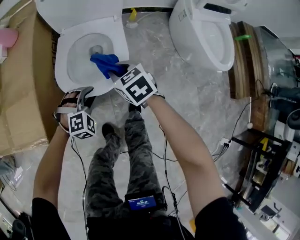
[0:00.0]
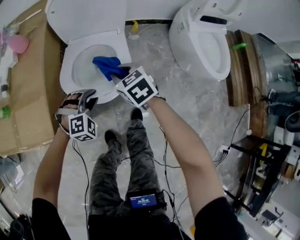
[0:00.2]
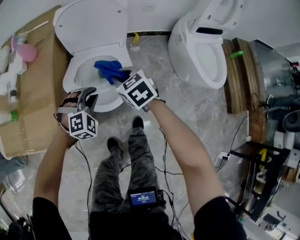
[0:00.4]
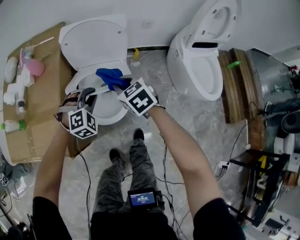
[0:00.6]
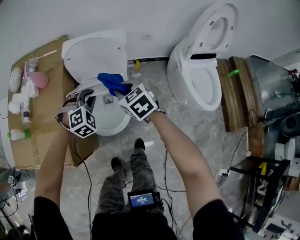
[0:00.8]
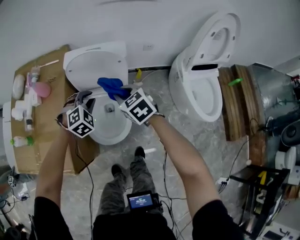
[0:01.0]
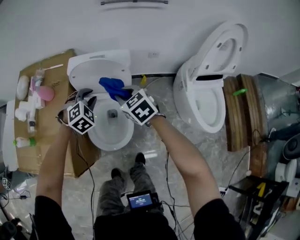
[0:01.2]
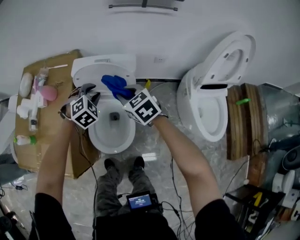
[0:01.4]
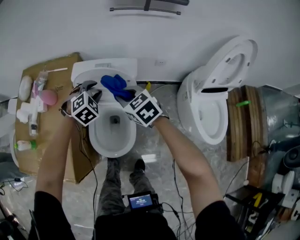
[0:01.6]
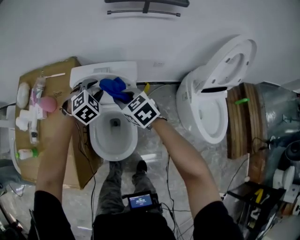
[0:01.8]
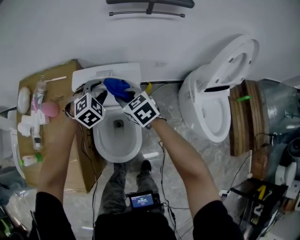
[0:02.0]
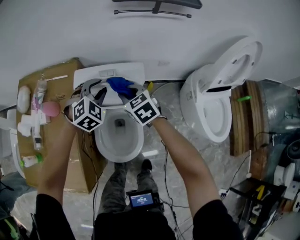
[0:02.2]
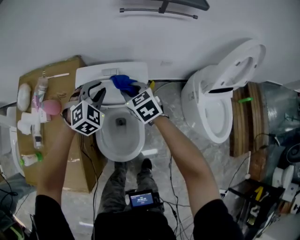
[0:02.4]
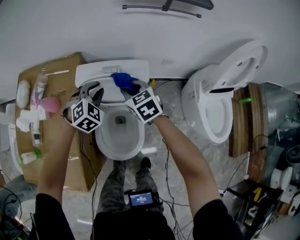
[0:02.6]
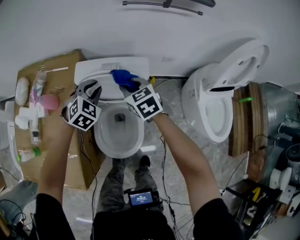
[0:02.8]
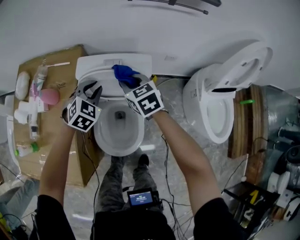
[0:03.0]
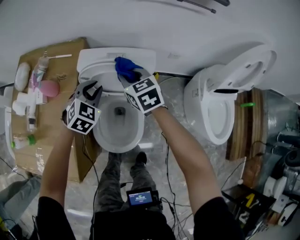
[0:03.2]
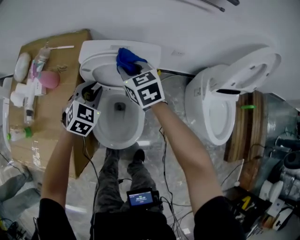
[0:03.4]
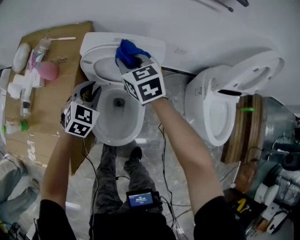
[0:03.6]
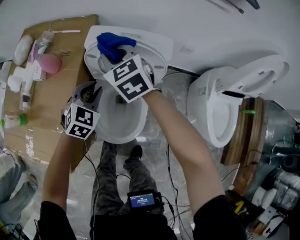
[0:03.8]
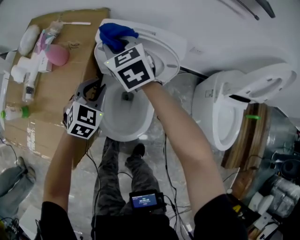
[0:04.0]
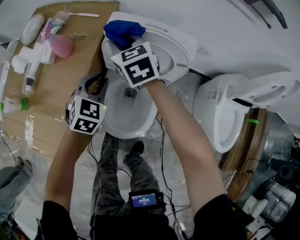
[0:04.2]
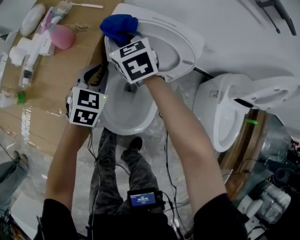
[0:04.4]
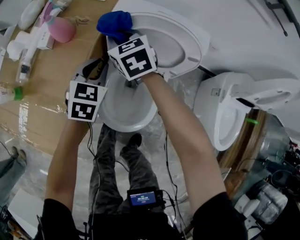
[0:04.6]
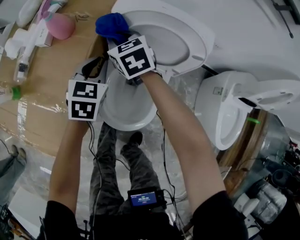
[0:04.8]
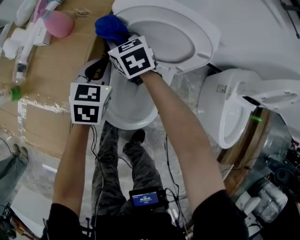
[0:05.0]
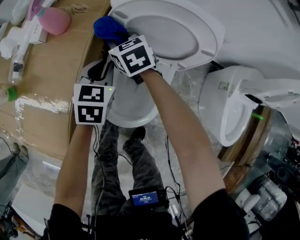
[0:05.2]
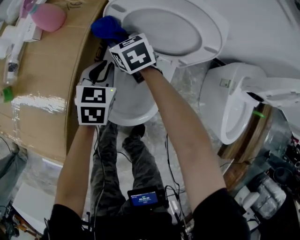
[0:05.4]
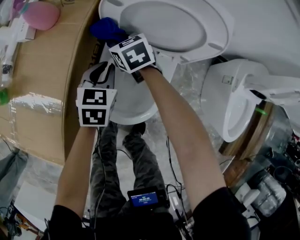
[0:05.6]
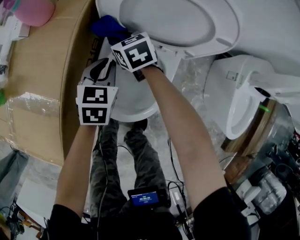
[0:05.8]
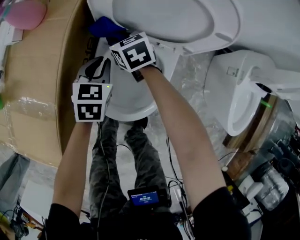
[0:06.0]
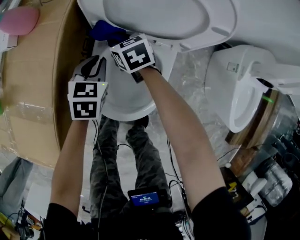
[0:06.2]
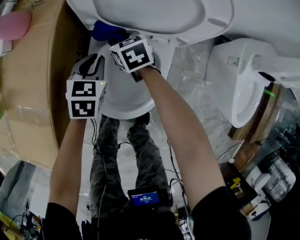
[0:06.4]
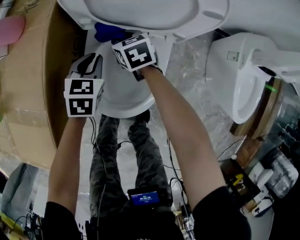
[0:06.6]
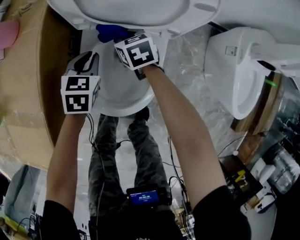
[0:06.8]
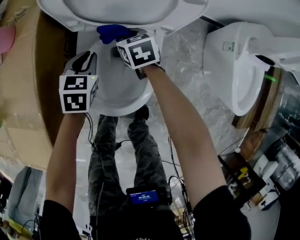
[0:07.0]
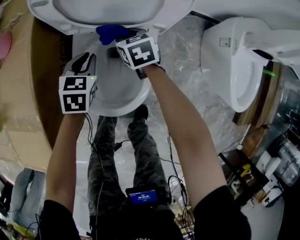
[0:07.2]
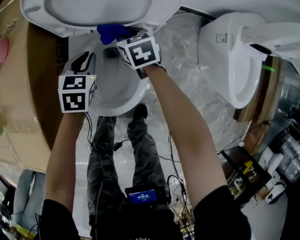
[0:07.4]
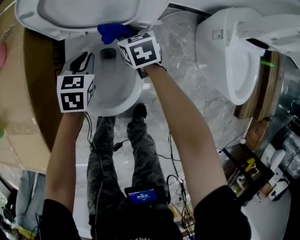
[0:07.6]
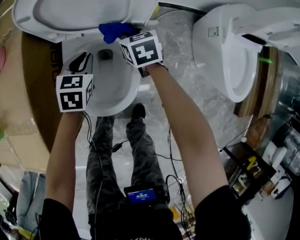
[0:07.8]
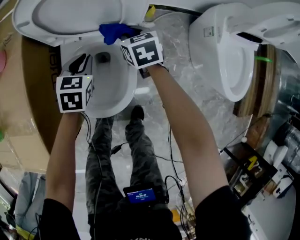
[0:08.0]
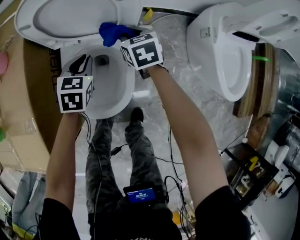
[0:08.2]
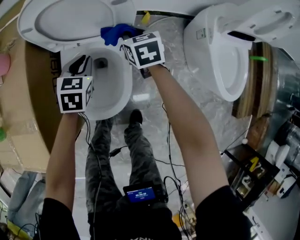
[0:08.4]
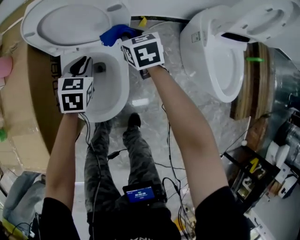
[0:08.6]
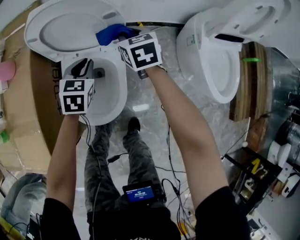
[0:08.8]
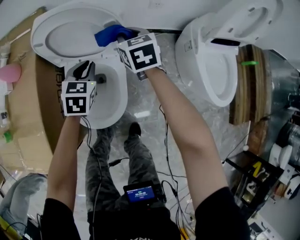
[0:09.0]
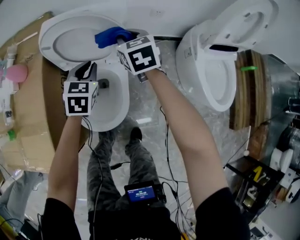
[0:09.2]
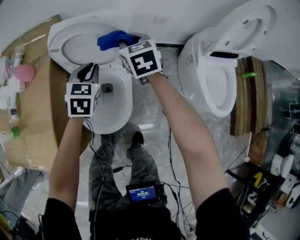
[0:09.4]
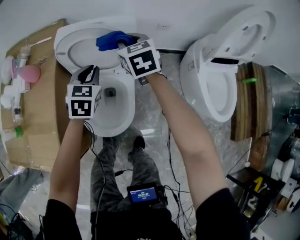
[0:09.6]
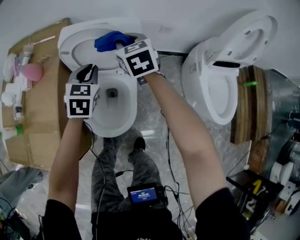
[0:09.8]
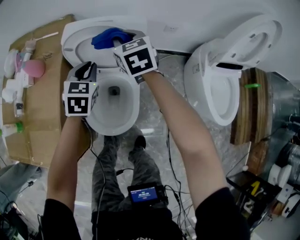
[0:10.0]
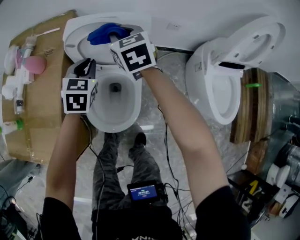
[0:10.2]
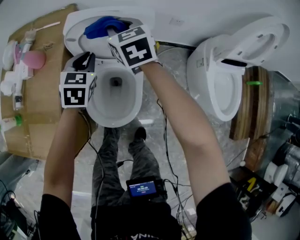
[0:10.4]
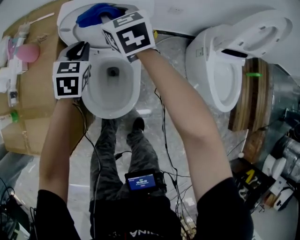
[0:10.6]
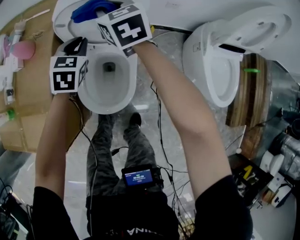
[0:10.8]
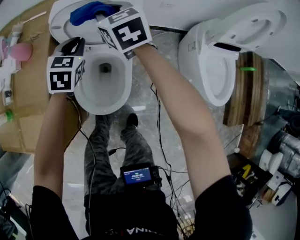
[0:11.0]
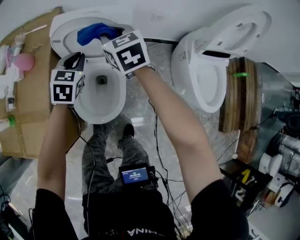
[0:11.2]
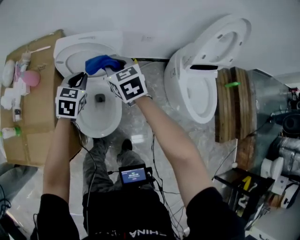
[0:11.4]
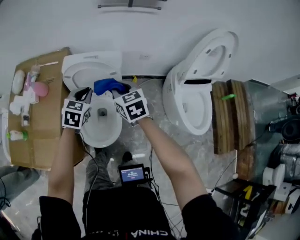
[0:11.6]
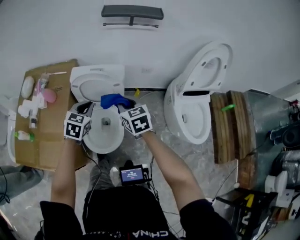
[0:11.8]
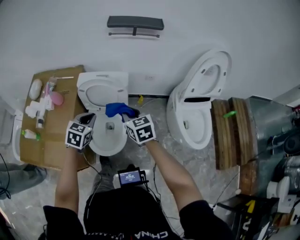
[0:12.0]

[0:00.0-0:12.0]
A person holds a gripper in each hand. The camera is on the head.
0:00.0 to 0:01.6: The right gripper travels upward and forward by approximately 35 cm, while the left gripper heads forward and upward, covering roughly 50 cm, and turns by about 20 degrees.
0:01.6 to 0:03.0: The right gripper moves forward, approximately 10 cm. Meanwhile the left gripper shifts by about 5 cm.
0:03.0 to 0:04.4: The left gripper travels to the left, downward and backward by some 15 cm, and turns by approximately 30 degrees. Meanwhile the right gripper moves to the left, roughly 20 cm.
0:04.4 to 0:06.0: Both grippers travel together downward, roughly 20 cm. The right gripper changes its angle by roughly 20 degrees.
0:06.0 to 0:07.6: The left gripper is displaced to the right by approximately 10 cm. Meanwhile the right gripper heads to the right, covering some 20 cm, and turns by roughly 20 degrees.
0:07.6 to 0:09.0: The grippers both shift upward and to the right by approximately 20 cm.
0:09.0 to 0:10.4: The left gripper goes roughly 15 cm upward and to the left. The right gripper goes about 20 cm to the left and upward.
0:10.4 to 0:12.0: The right gripper shifts about 30 cm backward, upward and to the right. Meanwhile the left gripper travels backward and upward by some 25 cm.

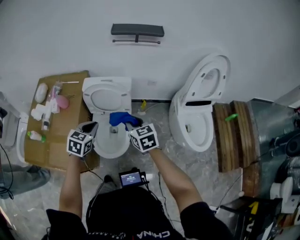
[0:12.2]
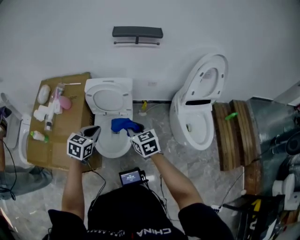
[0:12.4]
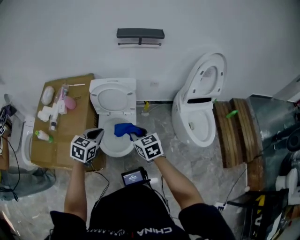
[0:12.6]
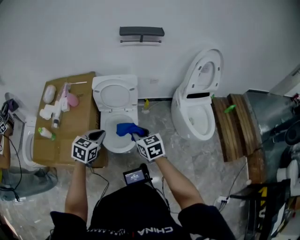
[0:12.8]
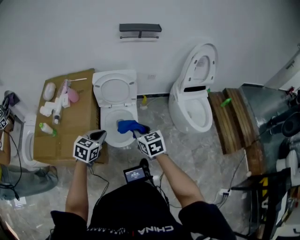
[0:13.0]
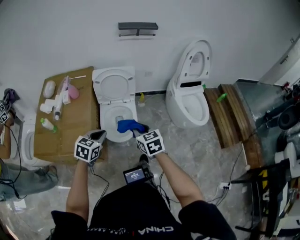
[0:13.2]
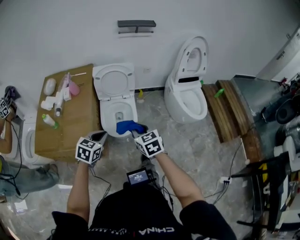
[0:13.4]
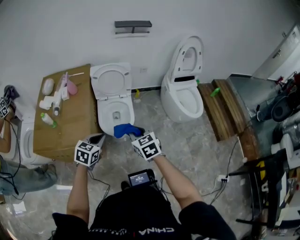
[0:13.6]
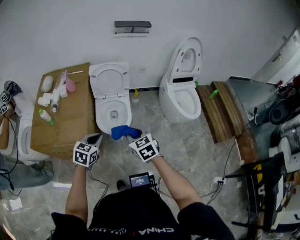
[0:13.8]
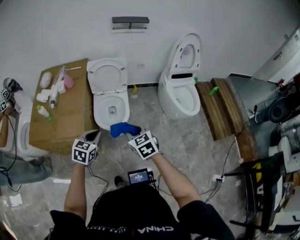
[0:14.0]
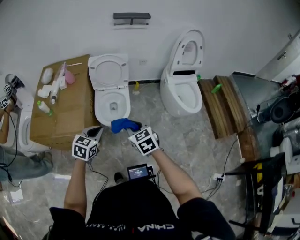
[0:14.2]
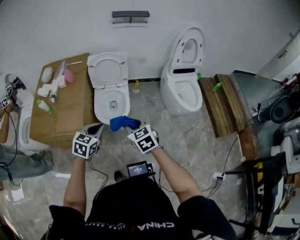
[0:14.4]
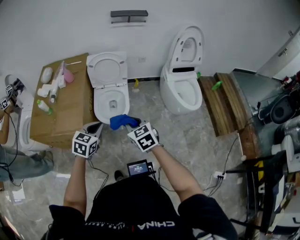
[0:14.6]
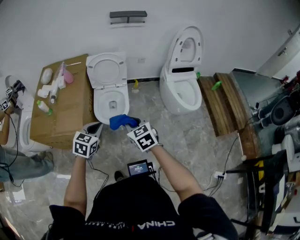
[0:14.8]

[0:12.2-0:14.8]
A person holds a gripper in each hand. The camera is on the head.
0:12.2 to 0:13.4: The grippers both shift backward by roughly 30 cm.
0:13.4 to 0:14.8: The right gripper goes approximately 10 cm backward and to the right. Meanwhile the left gripper is displaced to the right and backward by approximately 10 cm.

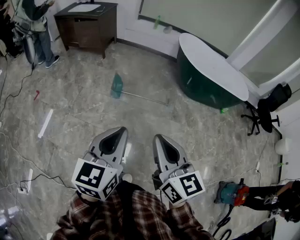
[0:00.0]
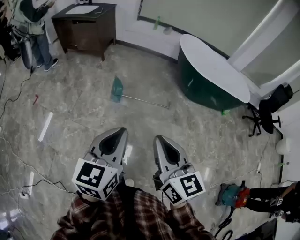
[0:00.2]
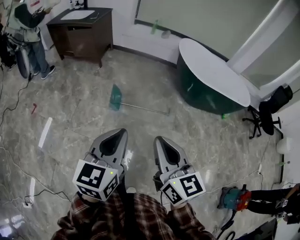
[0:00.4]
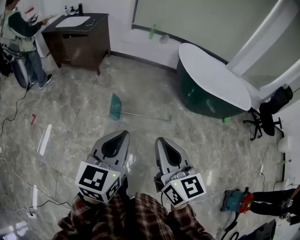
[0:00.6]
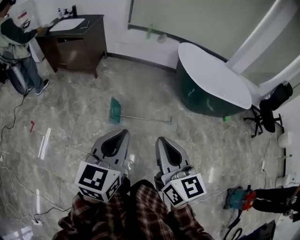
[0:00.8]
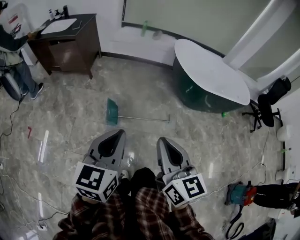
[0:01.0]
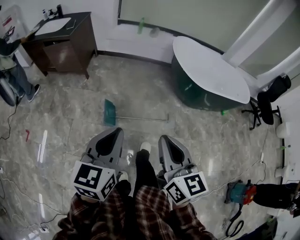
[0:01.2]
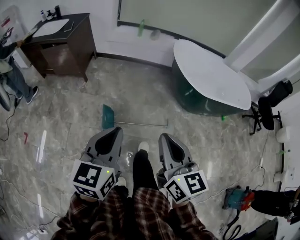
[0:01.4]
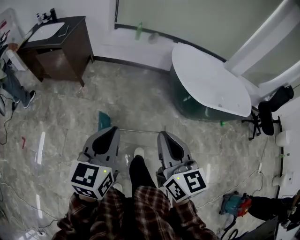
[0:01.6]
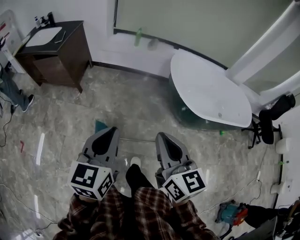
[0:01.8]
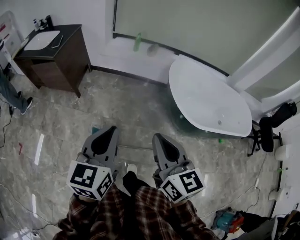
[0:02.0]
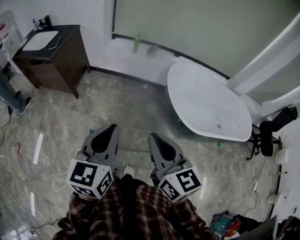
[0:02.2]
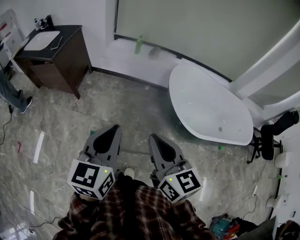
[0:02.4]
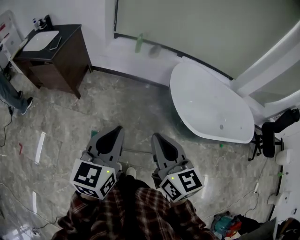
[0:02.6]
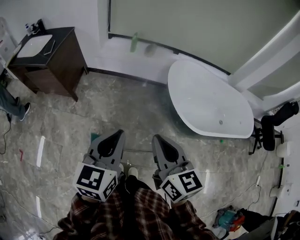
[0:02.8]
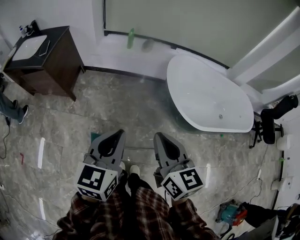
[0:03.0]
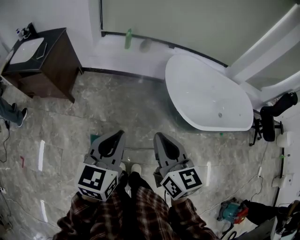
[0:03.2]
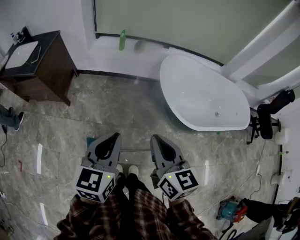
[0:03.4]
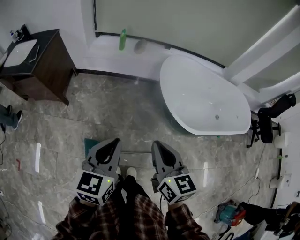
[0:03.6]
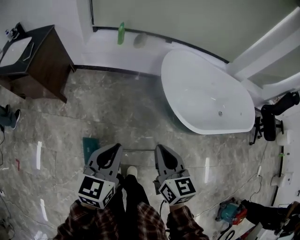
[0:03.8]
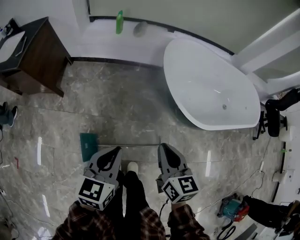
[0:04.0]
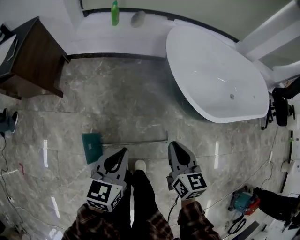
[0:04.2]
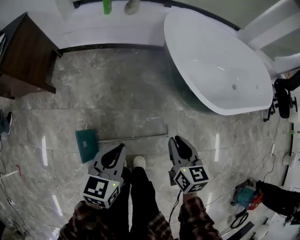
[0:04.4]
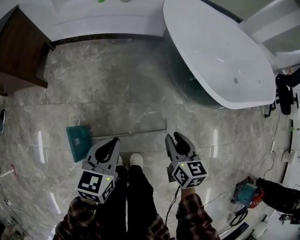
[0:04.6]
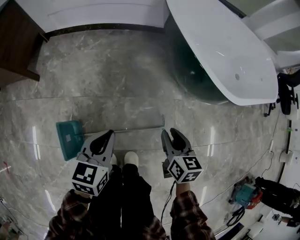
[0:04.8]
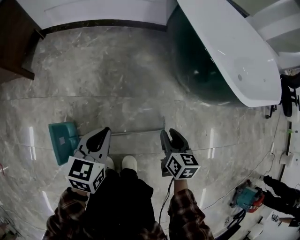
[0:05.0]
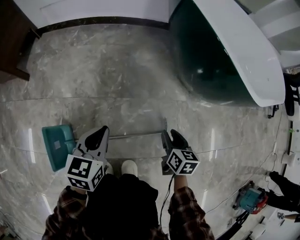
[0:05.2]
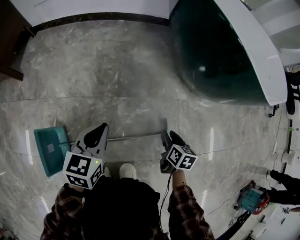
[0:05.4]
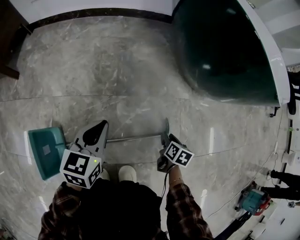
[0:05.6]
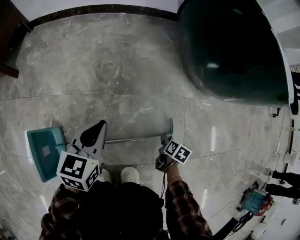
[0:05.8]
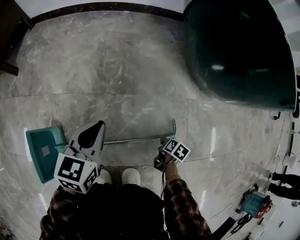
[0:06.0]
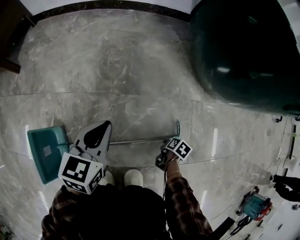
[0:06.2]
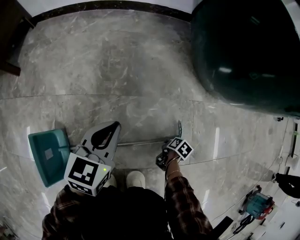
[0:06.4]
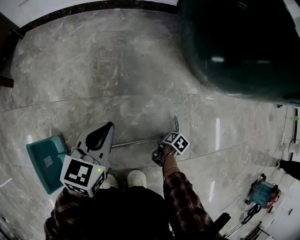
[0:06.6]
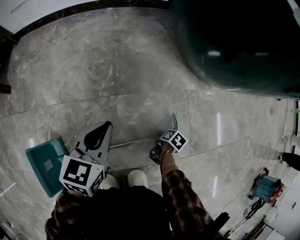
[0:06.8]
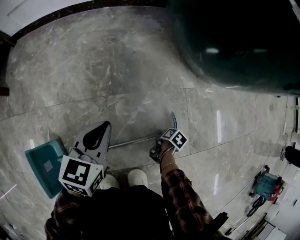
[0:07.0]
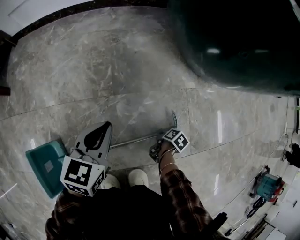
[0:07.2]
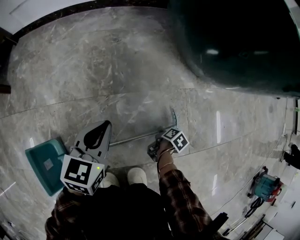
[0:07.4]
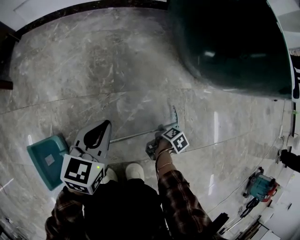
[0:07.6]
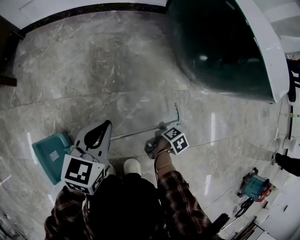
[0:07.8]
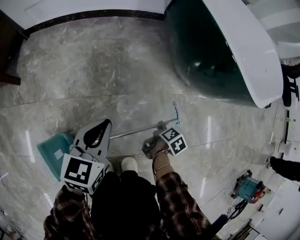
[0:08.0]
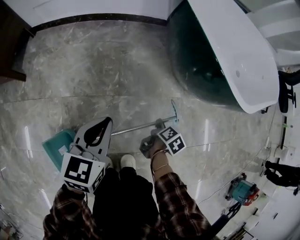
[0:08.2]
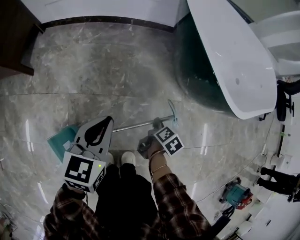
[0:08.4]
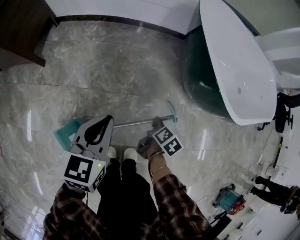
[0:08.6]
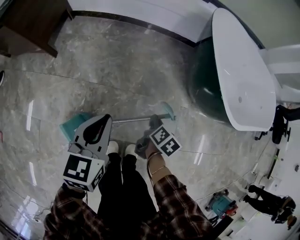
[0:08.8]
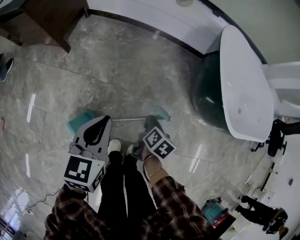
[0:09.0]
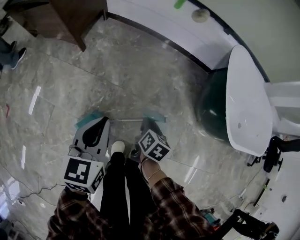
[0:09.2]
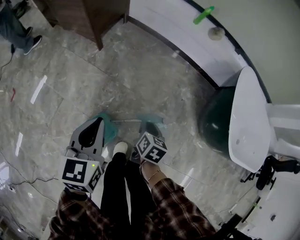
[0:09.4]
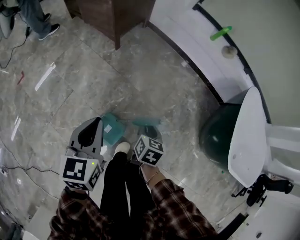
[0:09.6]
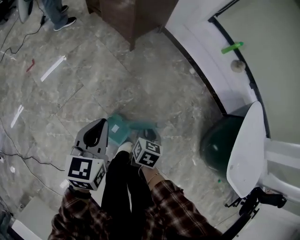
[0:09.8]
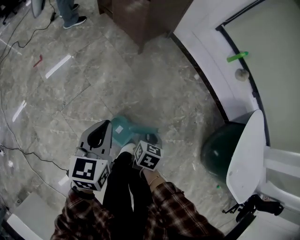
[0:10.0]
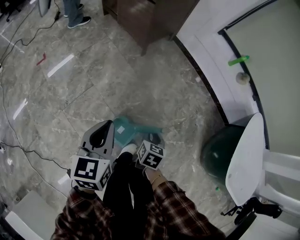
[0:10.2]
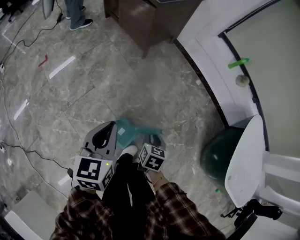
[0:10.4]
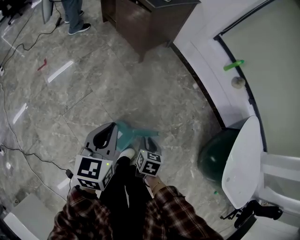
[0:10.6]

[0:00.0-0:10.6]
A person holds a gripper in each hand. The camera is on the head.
0:00.0 to 0:01.6: The two grippers travel together, forward, about 50 cm.
0:01.6 to 0:03.0: Both grippers move forward, approximately 25 cm.
0:03.0 to 0:04.6: Both grippers travel together downward, about 40 cm. The right gripper changes its angle by some 30 degrees, and opens up.
0:04.6 to 0:06.0: The left gripper is displaced downward by some 30 cm. Meanwhile the right gripper is displaced downward by roughly 50 cm, and points its fingers approximately 30 degrees further downward.
0:06.0 to 0:07.6: The right gripper moves some 5 cm downward and comes back, and changes its angle by some 30 degrees.
0:07.6 to 0:09.0: The grippers both shift upward by roughly 40 cm. The right gripper turns by roughly 40 degrees, while the left gripper turns by roughly 30 degrees.
0:09.0 to 0:10.6: The left gripper changes place by some 35 cm, and changes its angle by roughly 40 degrees. The right gripper moves roughly 35 cm, and twists about 50 degrees counterclockwise, seen from behind.
